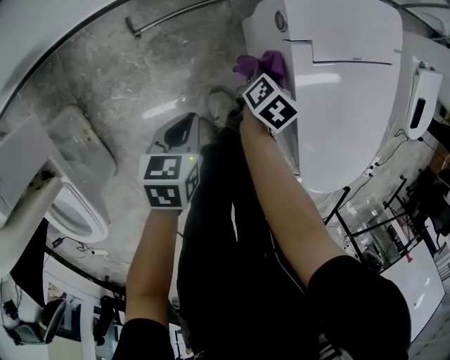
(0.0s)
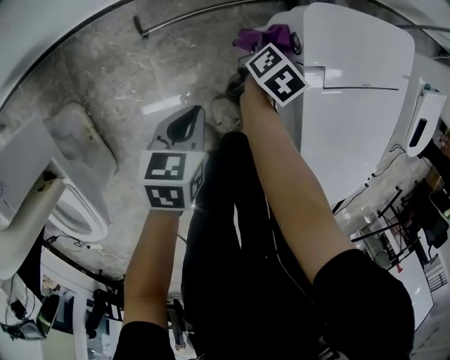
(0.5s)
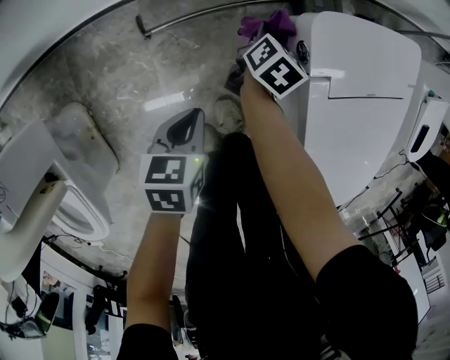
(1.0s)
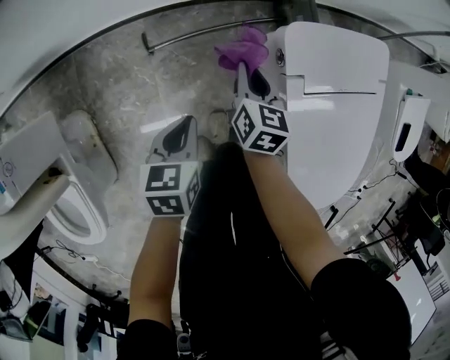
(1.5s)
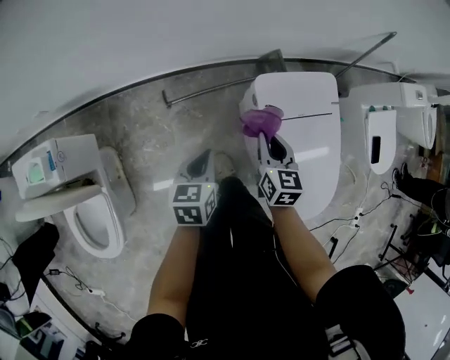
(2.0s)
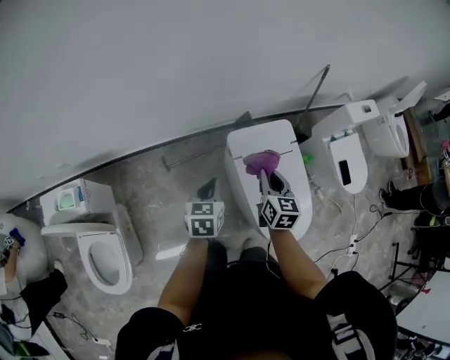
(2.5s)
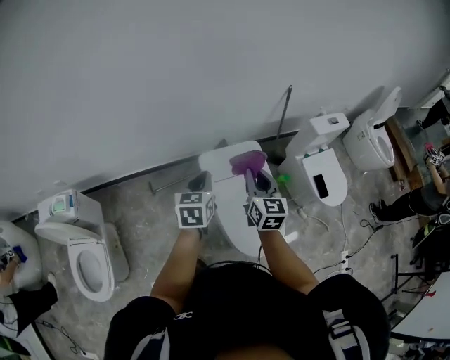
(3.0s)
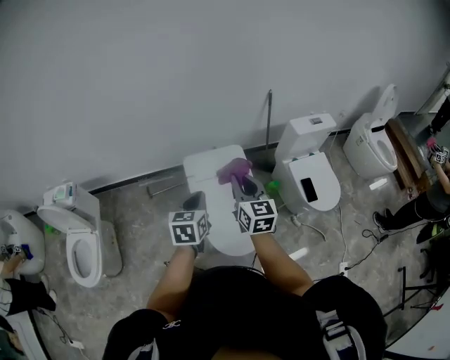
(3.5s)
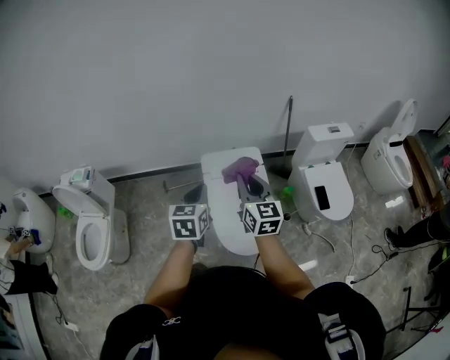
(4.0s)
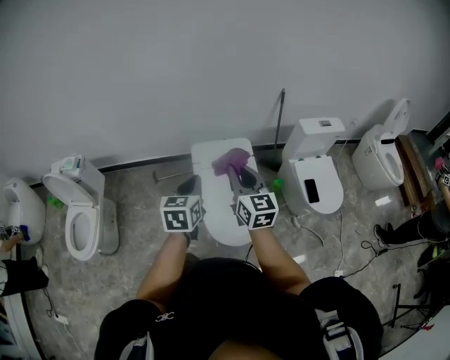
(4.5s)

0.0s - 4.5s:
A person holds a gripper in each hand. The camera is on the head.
0.0s - 2.0s: The two grippers go approximately 30 cm upward. The right gripper turns by some 50 degrees.
2.0s - 4.5s: Both grippers are carried to the right and backward, some 40 cm. The grippers both shift upward by some 35 cm. The left gripper rotates roughly 30 degrees; the right gripper swivels some 30 degrees.

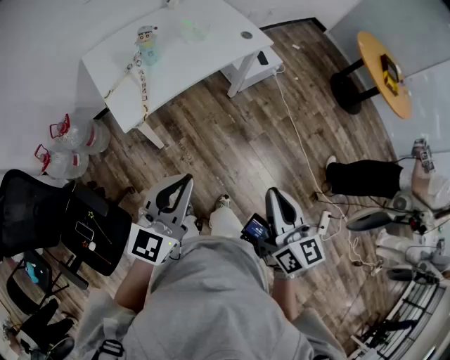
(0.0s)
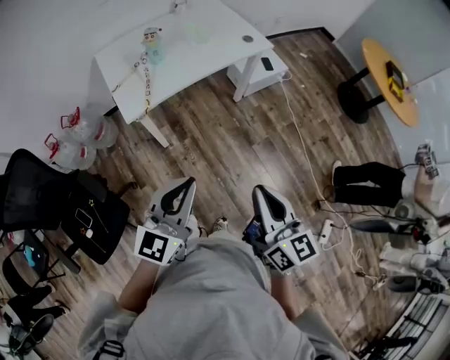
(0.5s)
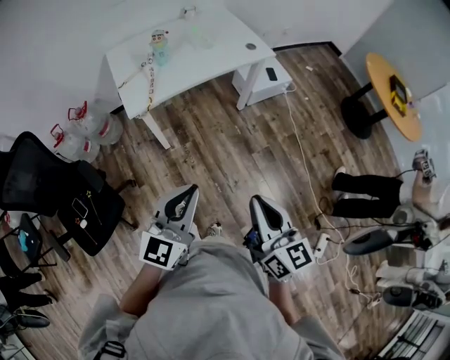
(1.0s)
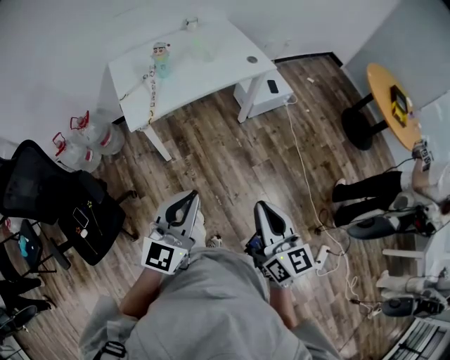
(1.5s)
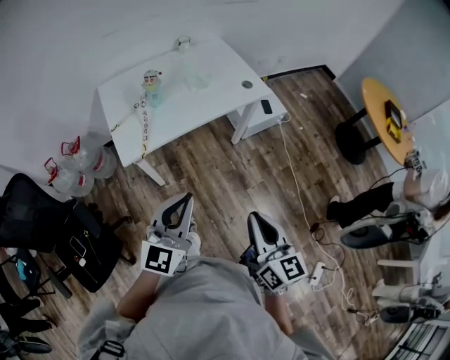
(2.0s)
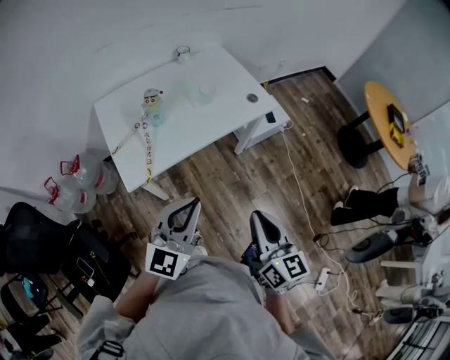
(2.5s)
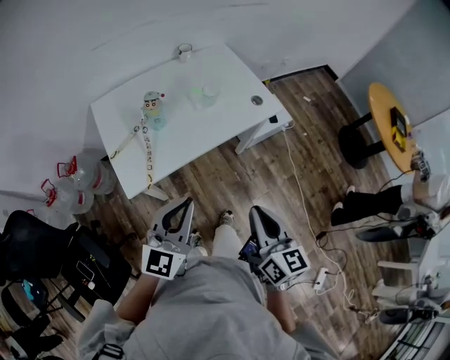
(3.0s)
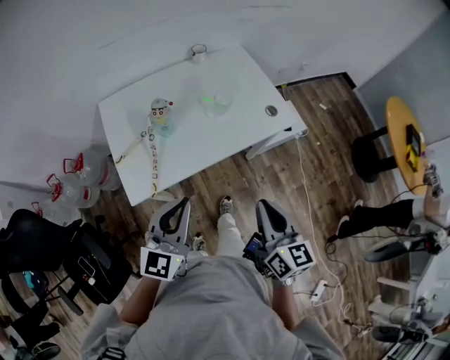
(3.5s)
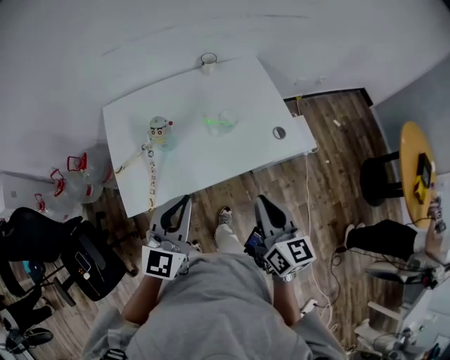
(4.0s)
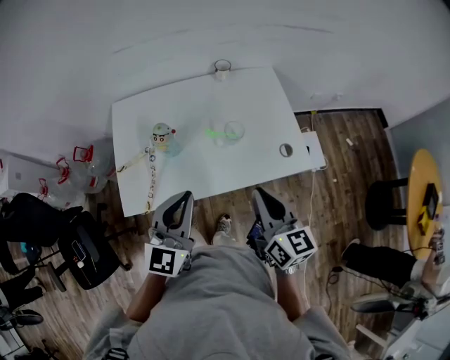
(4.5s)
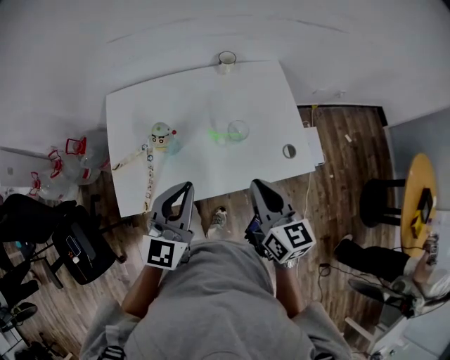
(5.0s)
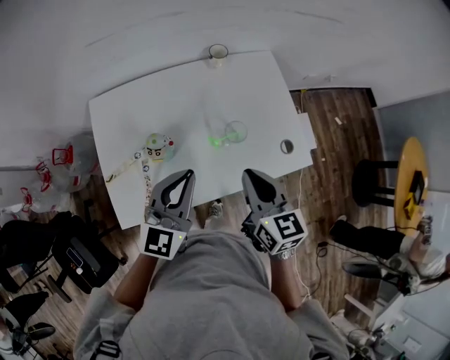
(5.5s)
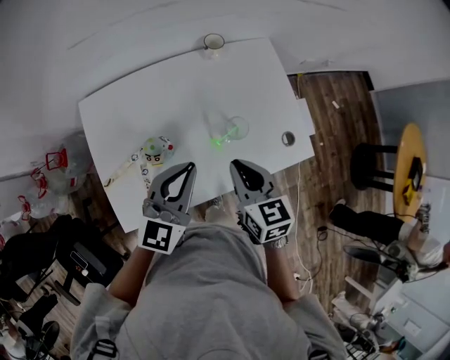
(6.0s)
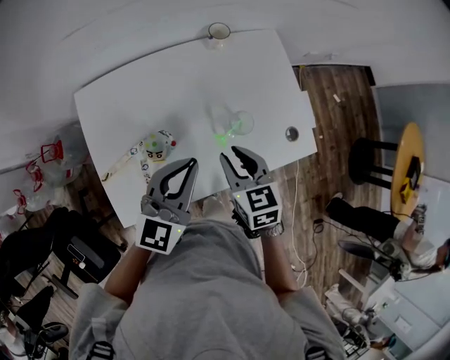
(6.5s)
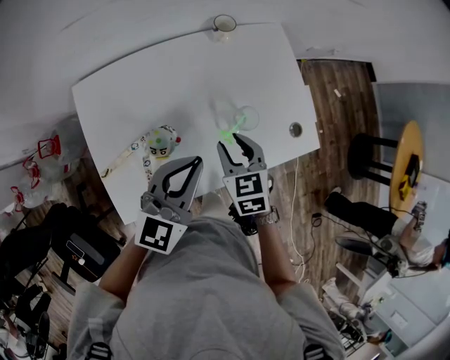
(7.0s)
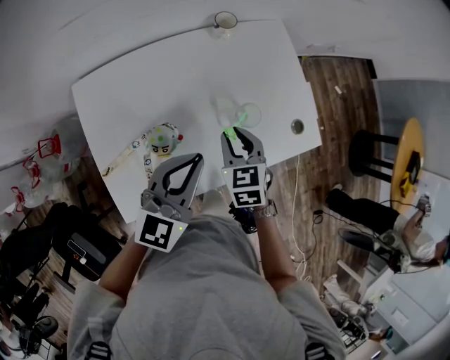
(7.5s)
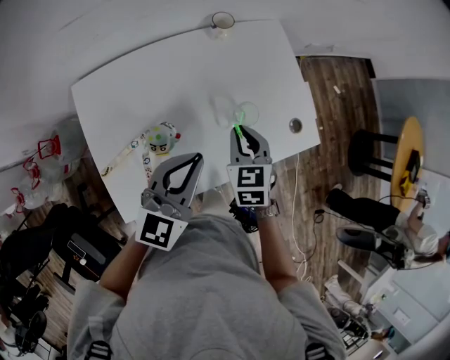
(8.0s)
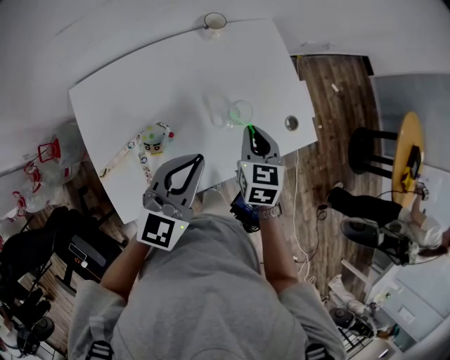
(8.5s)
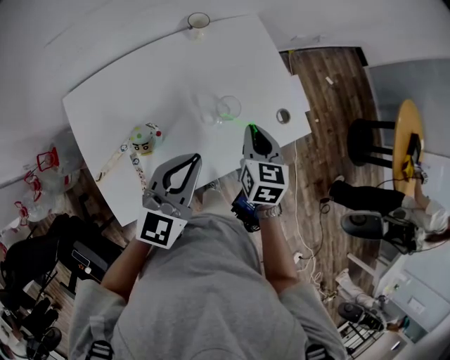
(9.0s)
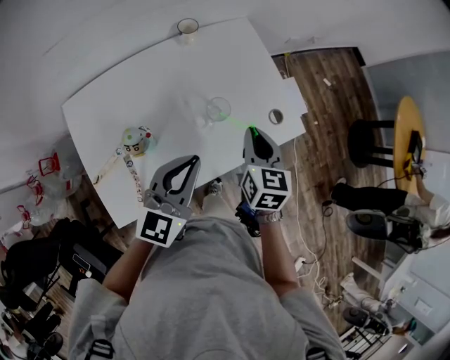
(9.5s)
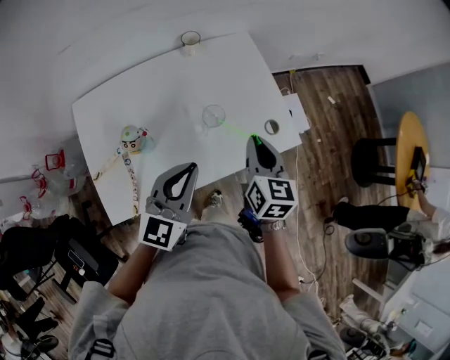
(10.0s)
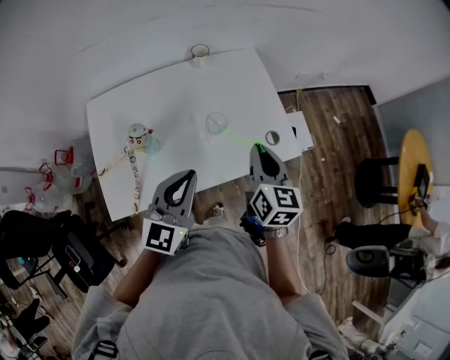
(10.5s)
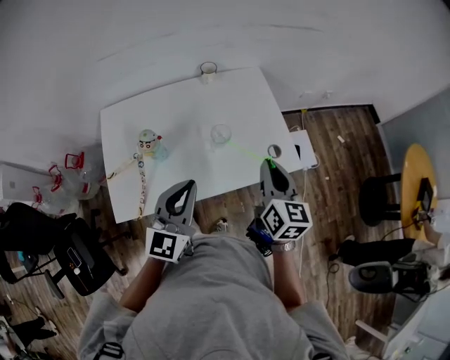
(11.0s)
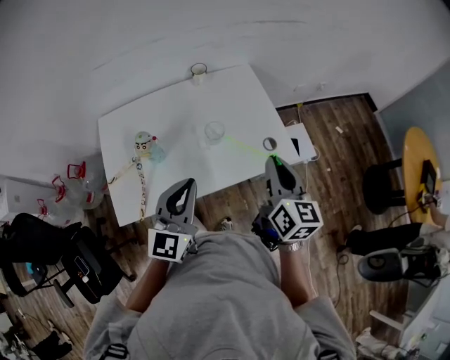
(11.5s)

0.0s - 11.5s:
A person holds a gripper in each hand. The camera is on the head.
0.0s - 2.0s: The right gripper goes approximately 5 cm forward, while the left gripper goes some 5 cm to the right, and goes backward and returns, roughly 10 cm each way.
2.0s - 4.0s: The two grippers go about 35 cm forward.
4.0s - 6.0s: The right gripper is displaced forward and to the left by approximately 25 cm, and rotates roughly 20 degrees. The left gripper is displaced forward by some 20 cm.
6.0s - 7.5s: The right gripper heads downward, covering about 10 cm, swivels approximately 20 degrees, and opens.
7.5s - 9.5s: The left gripper goes about 10 cm to the right. The right gripper travels to the right and upward by some 15 cm, and rotates some 30 degrees.
9.5s - 11.5s: The right gripper shifts about 20 cm upward, to the right and backward, and turns by about 30 degrees, while the left gripper travels backward, upward and to the right by approximately 10 cm, and turns by approximately 20 degrees.

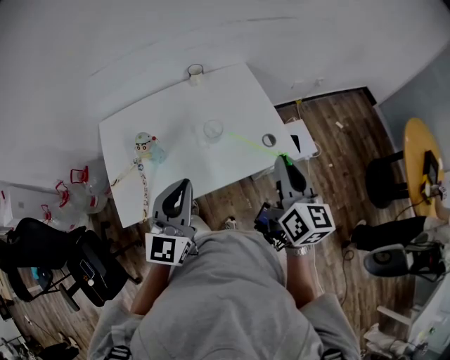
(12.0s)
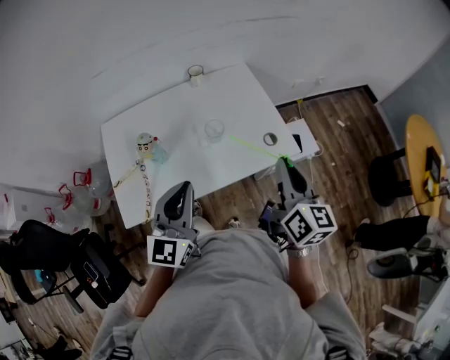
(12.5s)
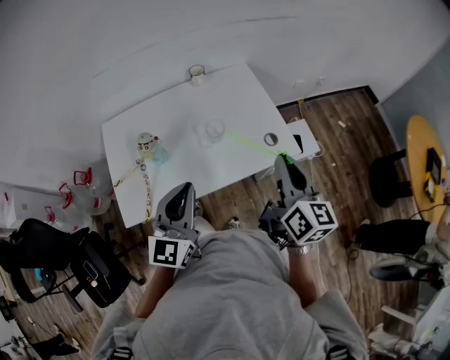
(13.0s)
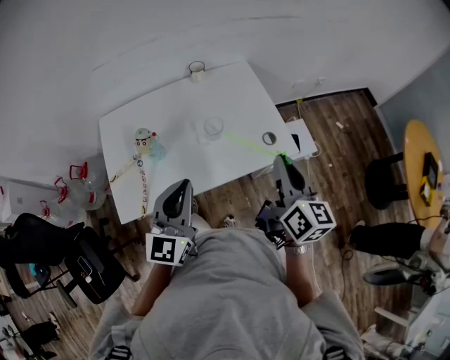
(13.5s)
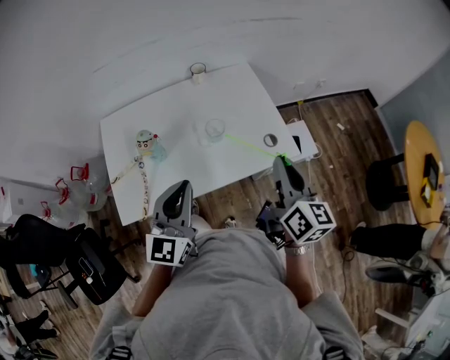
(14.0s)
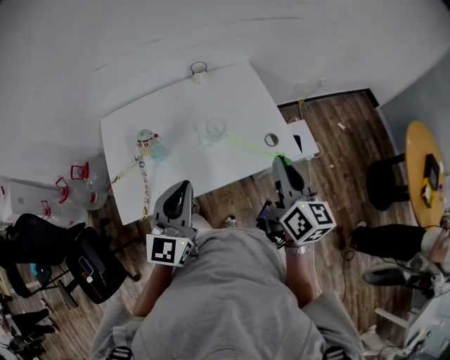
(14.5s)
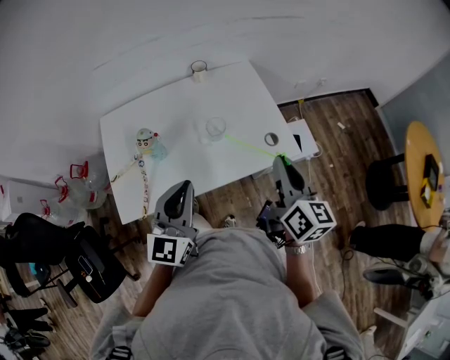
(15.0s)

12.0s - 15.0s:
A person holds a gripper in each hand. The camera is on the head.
12.0s - 13.5s: There are only small adjustments of the grippers.
13.5s - 15.0s: The two grippers keep their place.

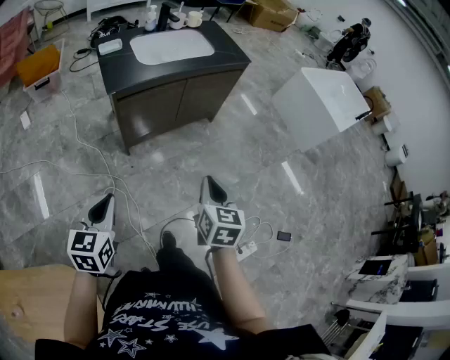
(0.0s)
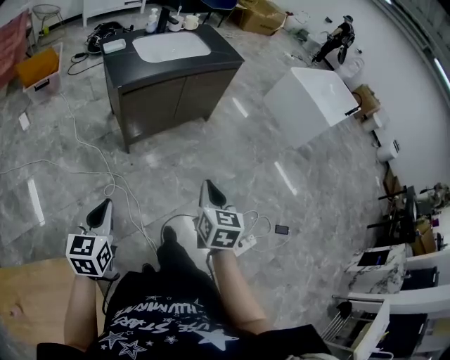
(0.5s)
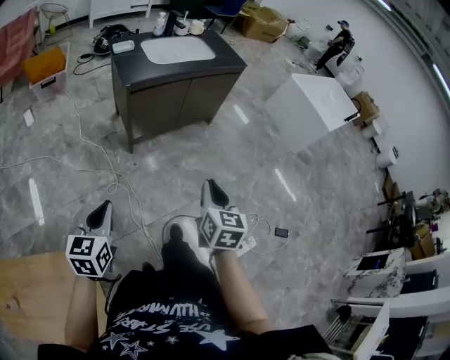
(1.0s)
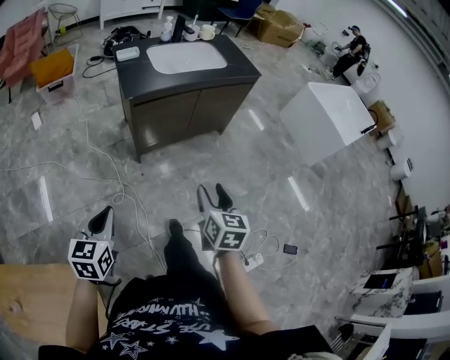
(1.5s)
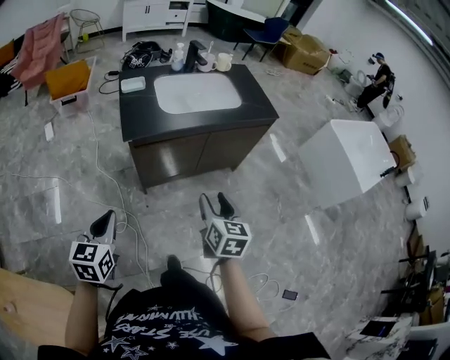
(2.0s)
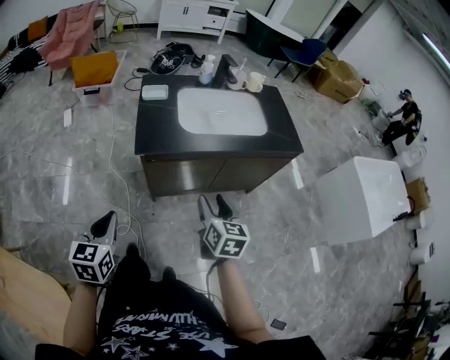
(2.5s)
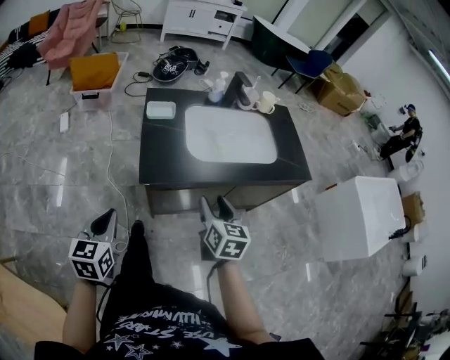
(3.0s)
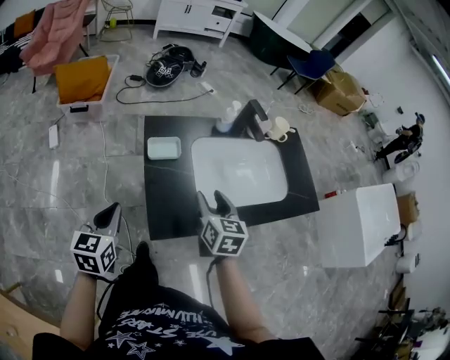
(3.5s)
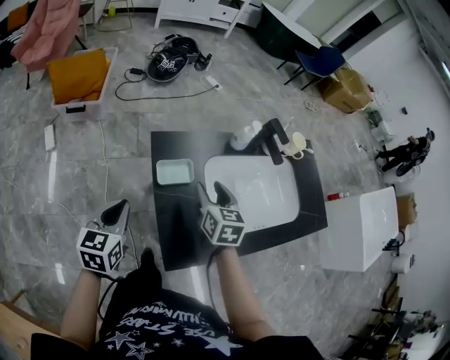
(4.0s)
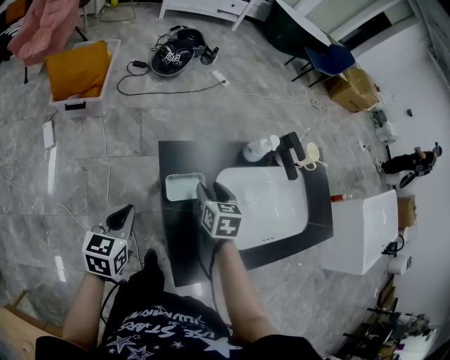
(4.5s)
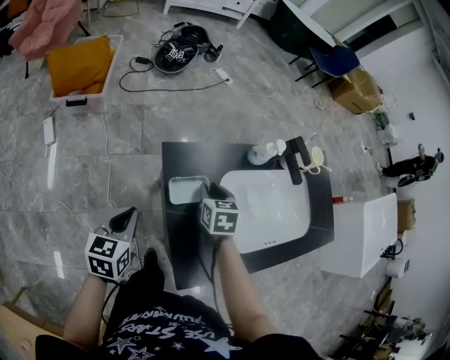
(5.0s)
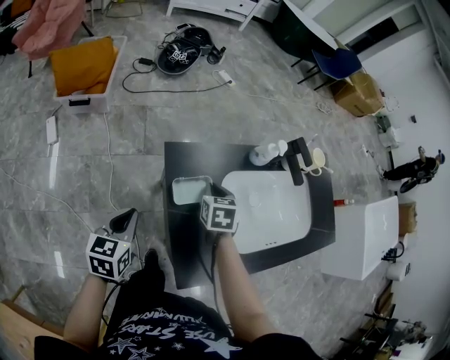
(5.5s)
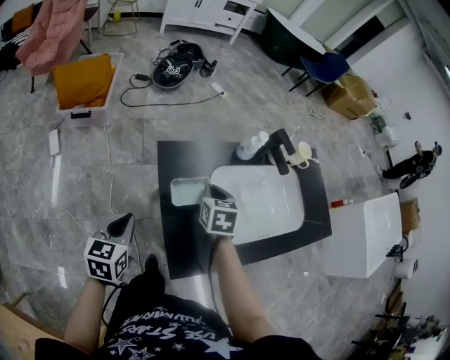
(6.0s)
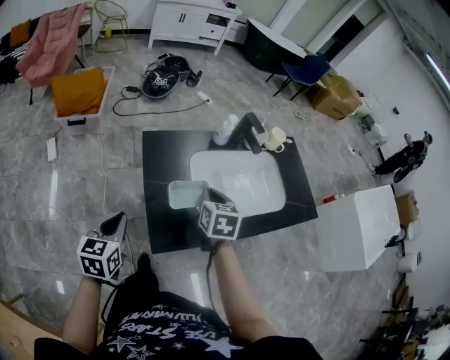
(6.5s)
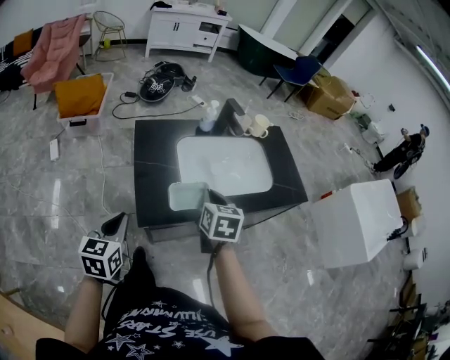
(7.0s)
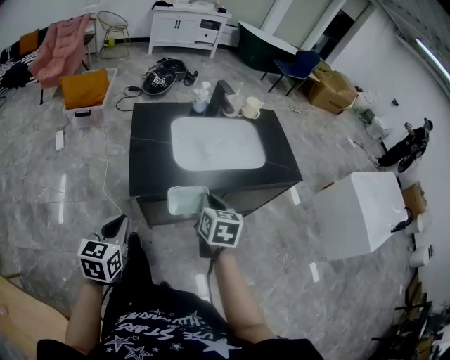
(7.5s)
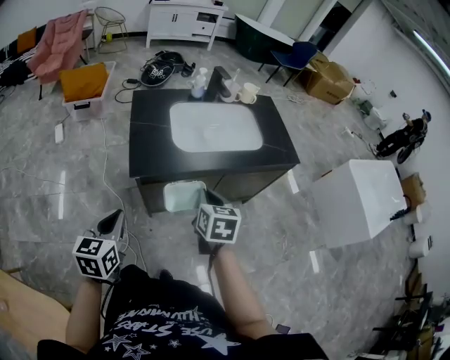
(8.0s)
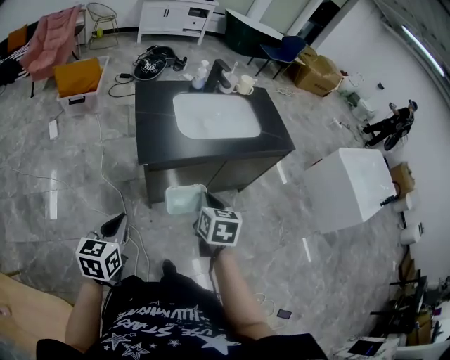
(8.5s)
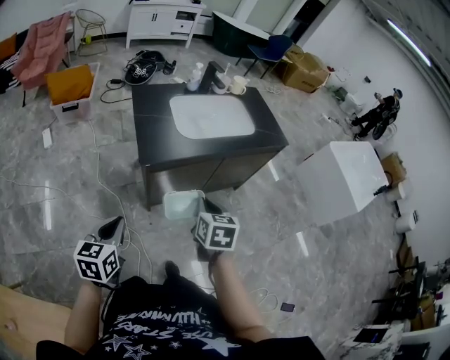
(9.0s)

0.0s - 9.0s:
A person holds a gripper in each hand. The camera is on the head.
0.0s - 2.0s: The grippers both shift forward by roughly 20 cm. The right gripper opens its fingers.
2.0s - 4.5s: Both grippers are carried forward and to the left, some 60 cm. The right gripper changes its angle by roughly 20 degrees.
4.5s - 7.0s: The right gripper is displaced backward, to the right and upward by approximately 30 cm, and closes. The left gripper moves backward and to the right, roughly 25 cm.
7.0s - 9.0s: The two grippers go about 25 cm backward.
